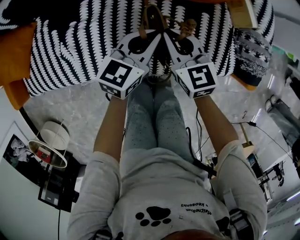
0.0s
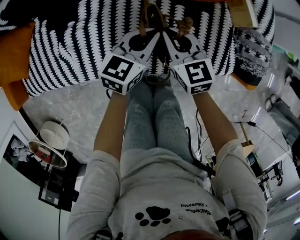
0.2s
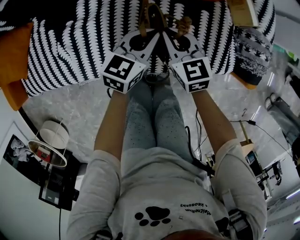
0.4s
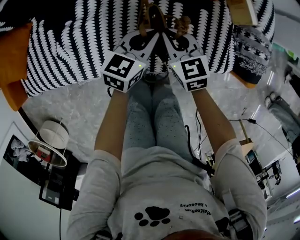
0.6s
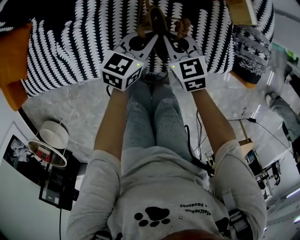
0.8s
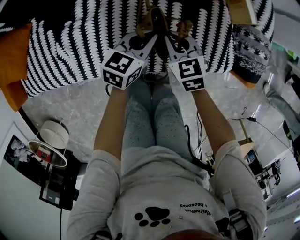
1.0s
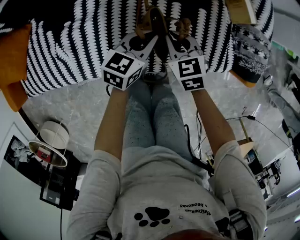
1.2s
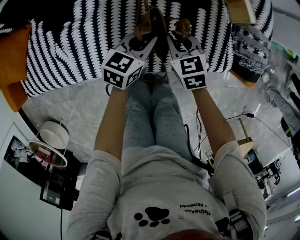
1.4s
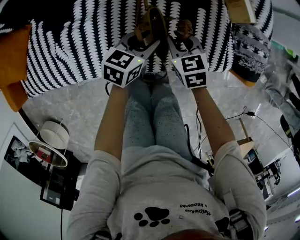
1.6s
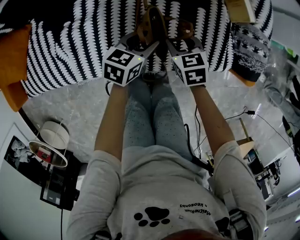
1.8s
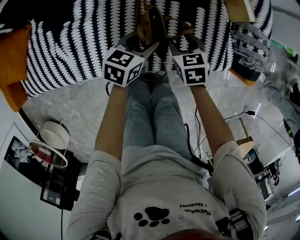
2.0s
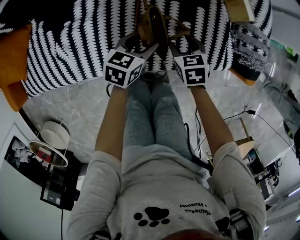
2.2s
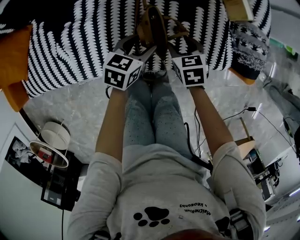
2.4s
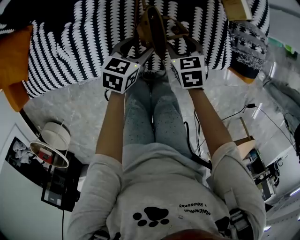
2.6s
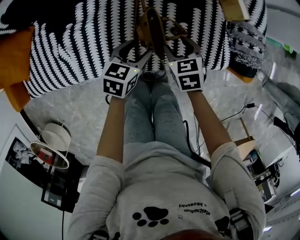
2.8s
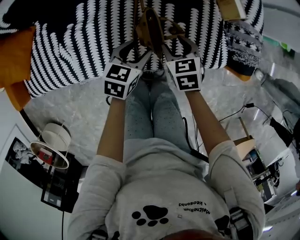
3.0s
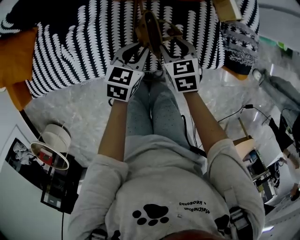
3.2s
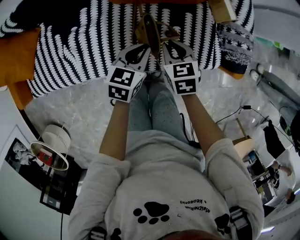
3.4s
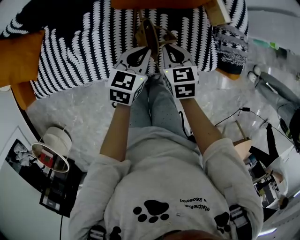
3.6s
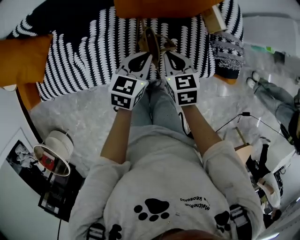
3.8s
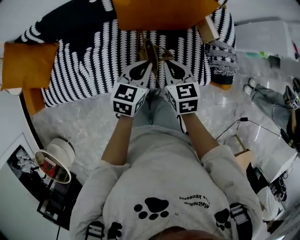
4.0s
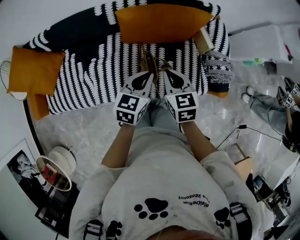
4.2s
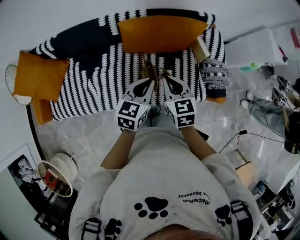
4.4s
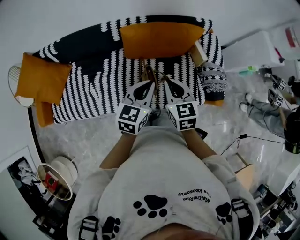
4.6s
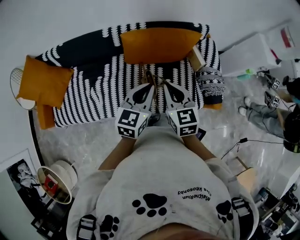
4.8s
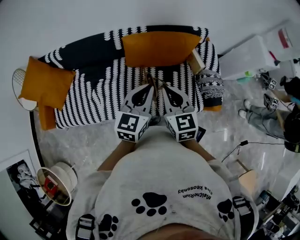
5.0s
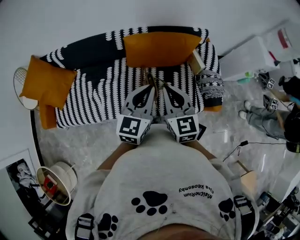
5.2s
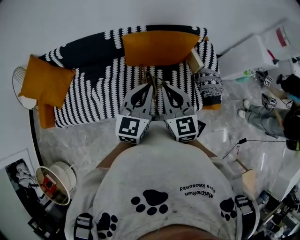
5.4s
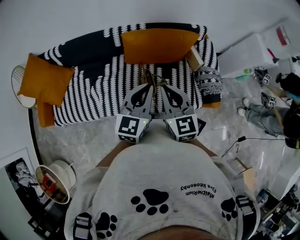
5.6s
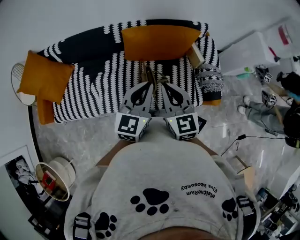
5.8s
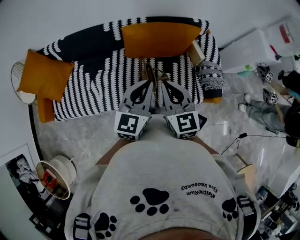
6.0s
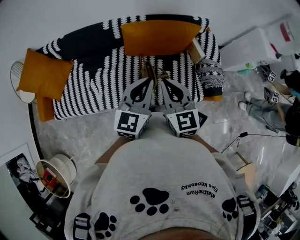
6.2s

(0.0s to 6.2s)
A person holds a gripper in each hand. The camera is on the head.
0.0s - 1.6s: The right gripper moves downward, about 5 cm, and rotates roughly 20 degrees. Meanwhile the left gripper changes place by about 5 cm, and opens.
1.6s - 3.2s: The left gripper moves about 5 cm. The right gripper travels downward and back again, some 5 cm each way, and opens up.
3.2s - 4.6s: Both grippers move upward, roughly 35 cm. The right gripper rotates some 20 degrees, and closes up. The left gripper rotates some 20 degrees.
4.6s - 6.2s: The grippers both shift upward and backward by roughly 10 cm.

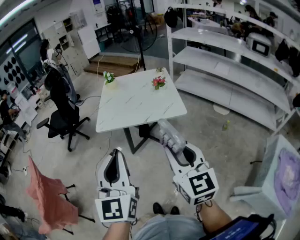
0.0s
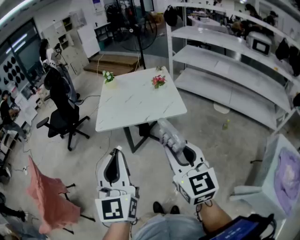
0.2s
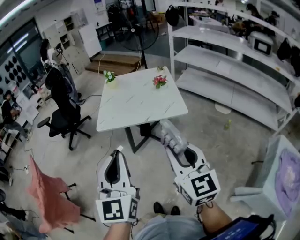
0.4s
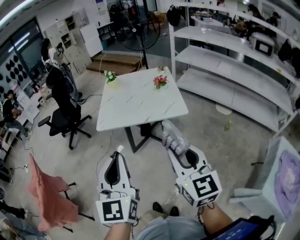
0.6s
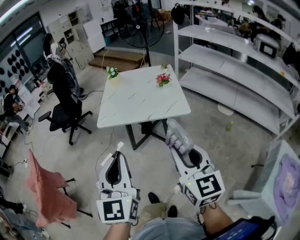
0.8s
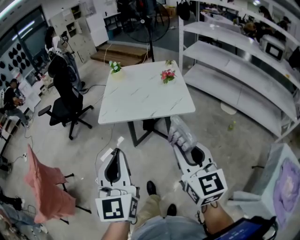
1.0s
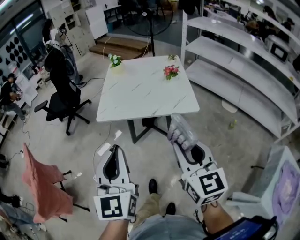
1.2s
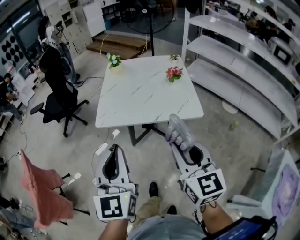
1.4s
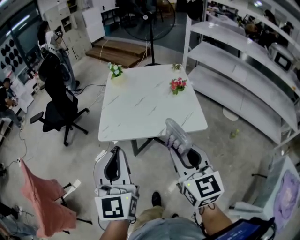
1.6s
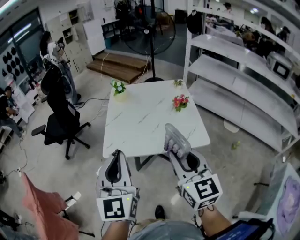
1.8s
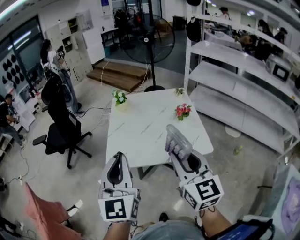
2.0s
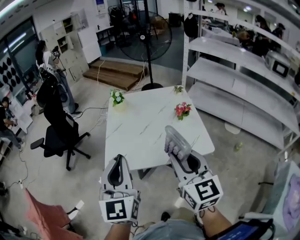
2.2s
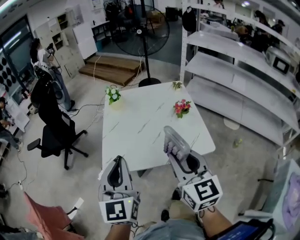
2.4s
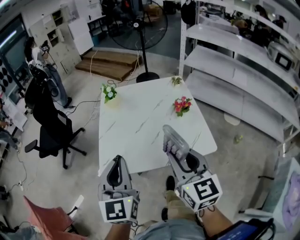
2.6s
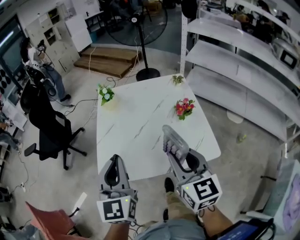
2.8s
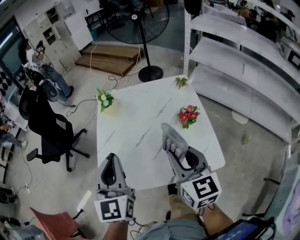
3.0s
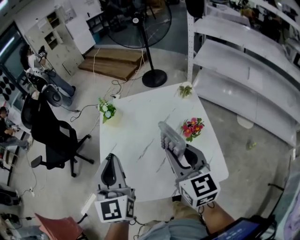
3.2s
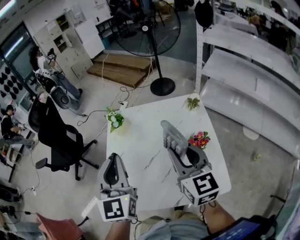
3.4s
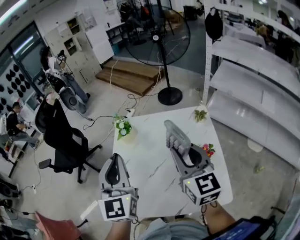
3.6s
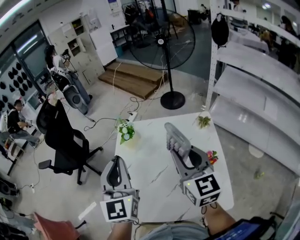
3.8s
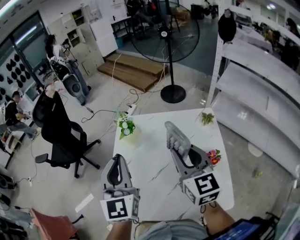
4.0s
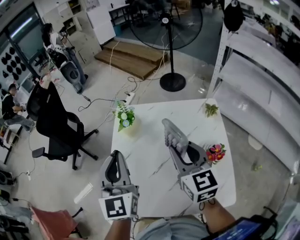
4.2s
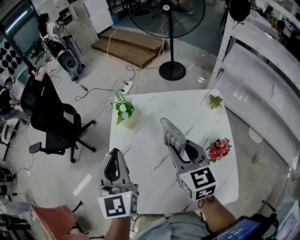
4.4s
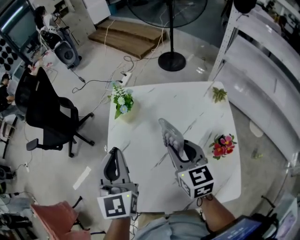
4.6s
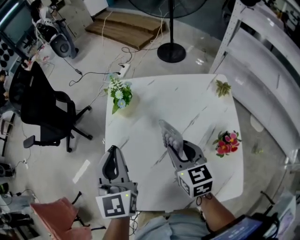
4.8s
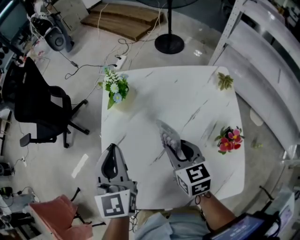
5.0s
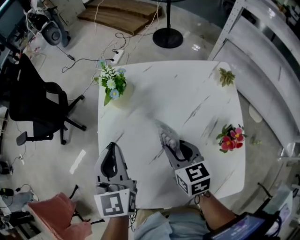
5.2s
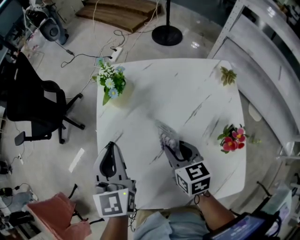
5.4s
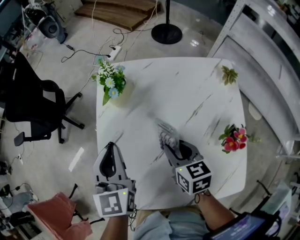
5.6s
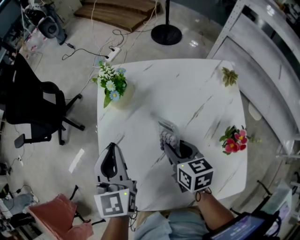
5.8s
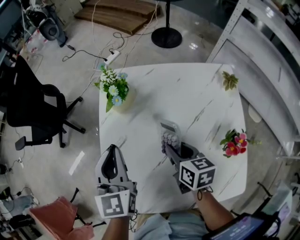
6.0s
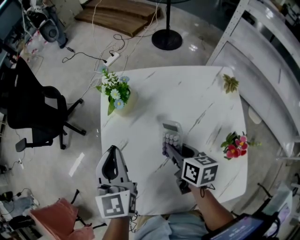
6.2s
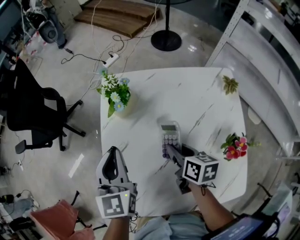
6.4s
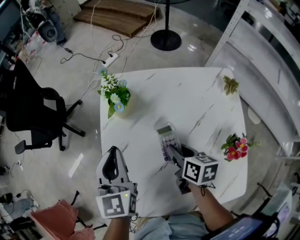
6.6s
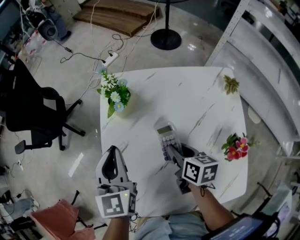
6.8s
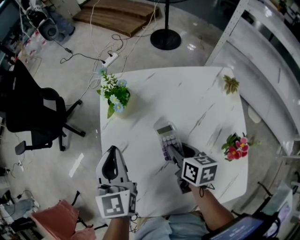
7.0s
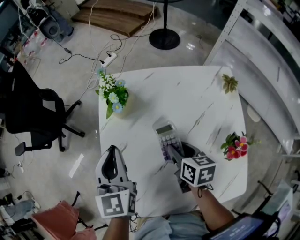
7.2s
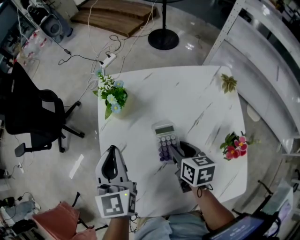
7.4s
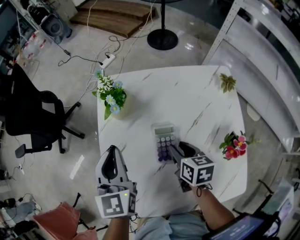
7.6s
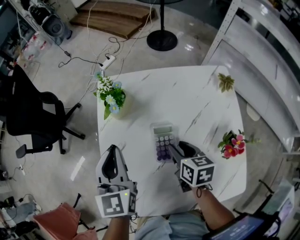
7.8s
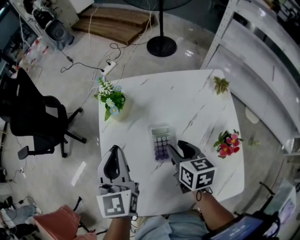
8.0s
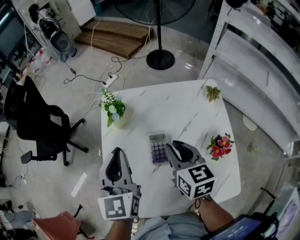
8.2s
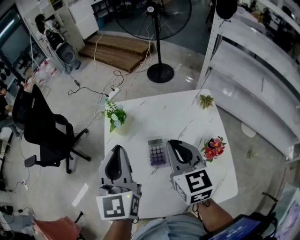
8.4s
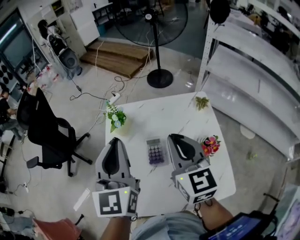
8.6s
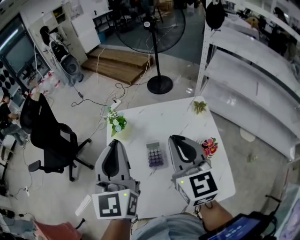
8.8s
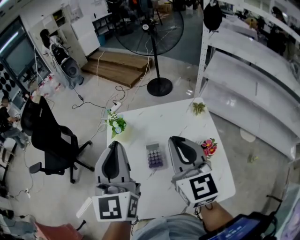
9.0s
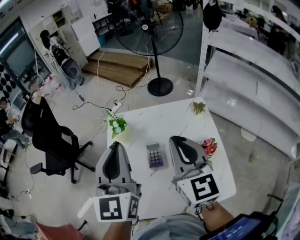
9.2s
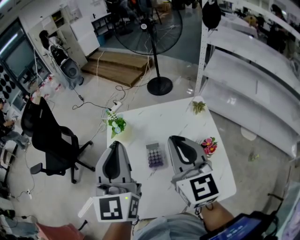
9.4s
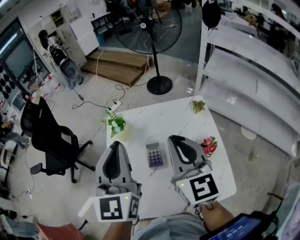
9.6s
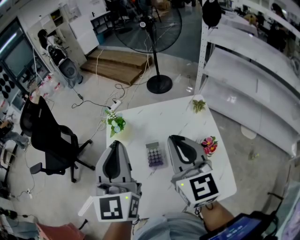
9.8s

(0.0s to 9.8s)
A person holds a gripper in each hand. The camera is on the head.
0.0s - 1.4s: Both grippers travel together forward, some 15 cm.
1.4s - 2.8s: Both grippers travel together forward, approximately 25 cm.
2.8s - 4.2s: The two grippers go approximately 25 cm forward.
4.2s - 5.6s: The grippers both shift downward by some 20 cm. The right gripper turns by approximately 30 degrees.
7.0s - 8.4s: The left gripper heads upward and to the right, covering some 15 cm. Meanwhile the right gripper is displaced upward by about 25 cm, swivels some 40 degrees, and closes its fingers.
8.4s - 9.8s: The two grippers go roughly 10 cm upward.

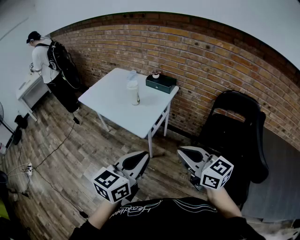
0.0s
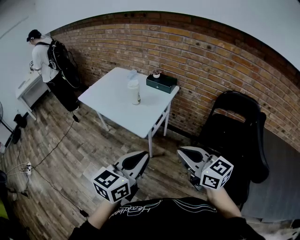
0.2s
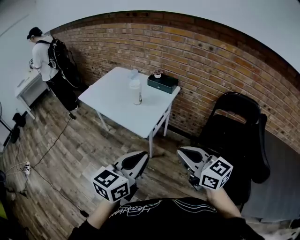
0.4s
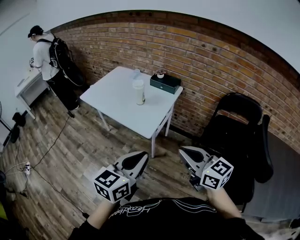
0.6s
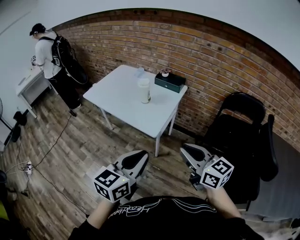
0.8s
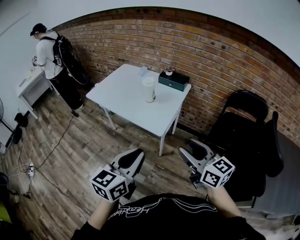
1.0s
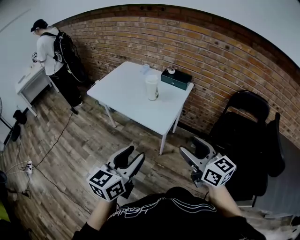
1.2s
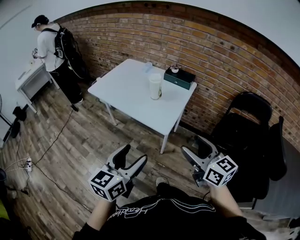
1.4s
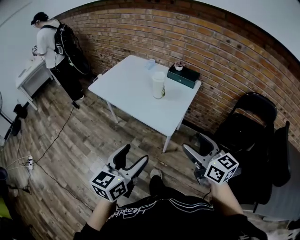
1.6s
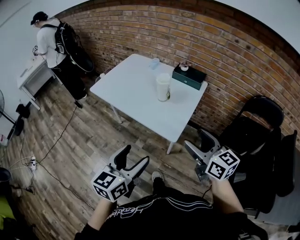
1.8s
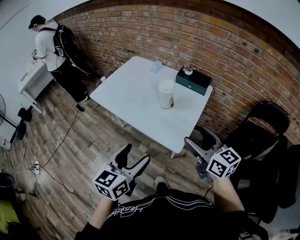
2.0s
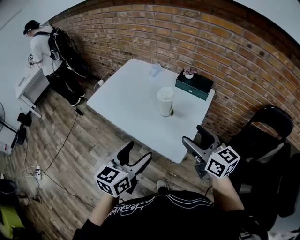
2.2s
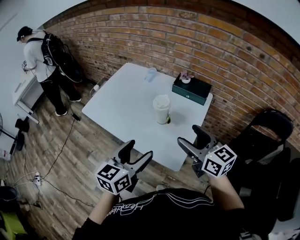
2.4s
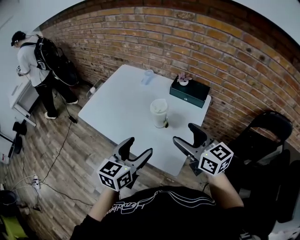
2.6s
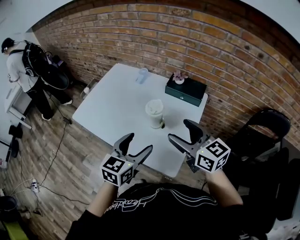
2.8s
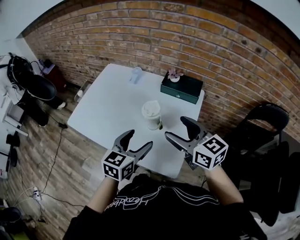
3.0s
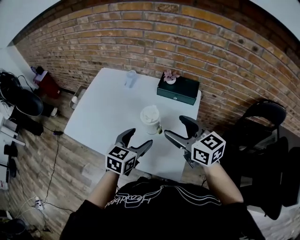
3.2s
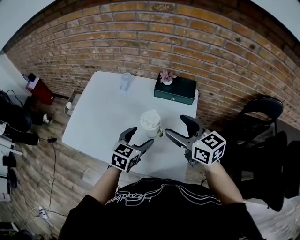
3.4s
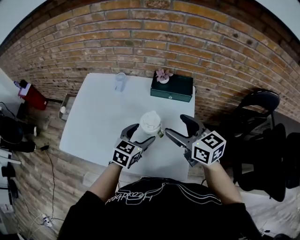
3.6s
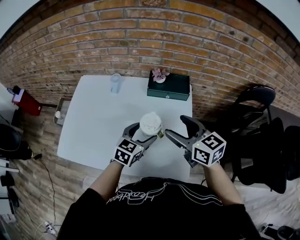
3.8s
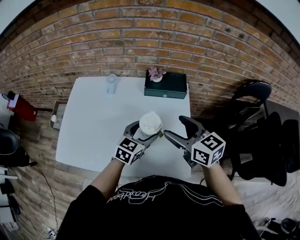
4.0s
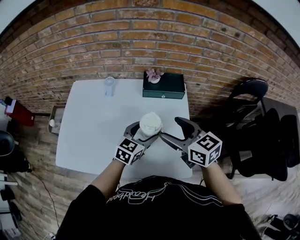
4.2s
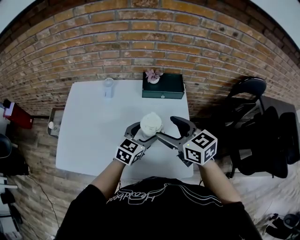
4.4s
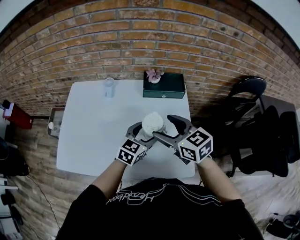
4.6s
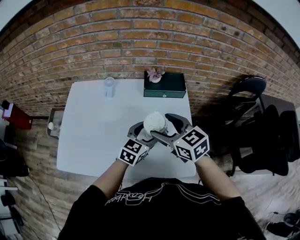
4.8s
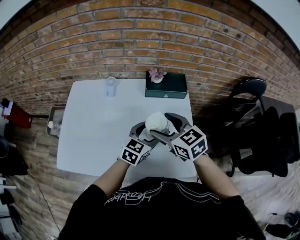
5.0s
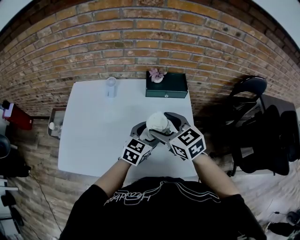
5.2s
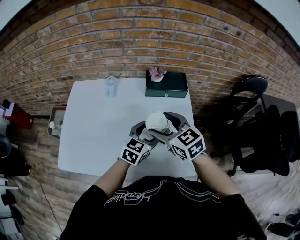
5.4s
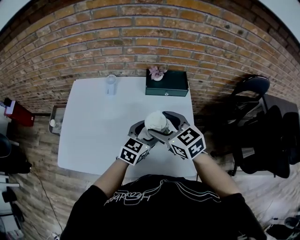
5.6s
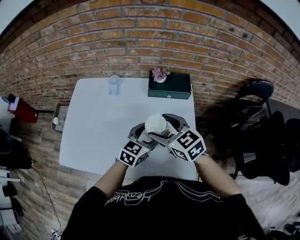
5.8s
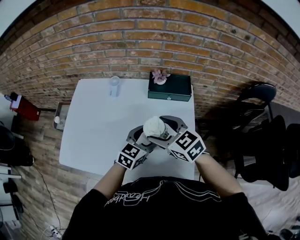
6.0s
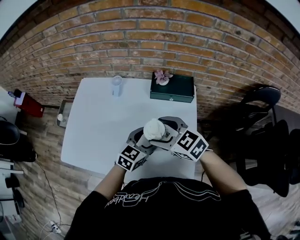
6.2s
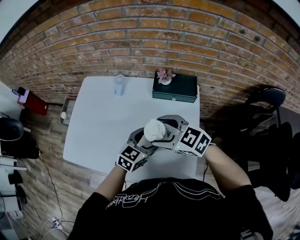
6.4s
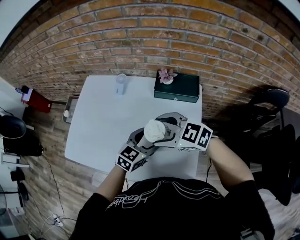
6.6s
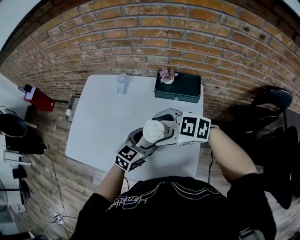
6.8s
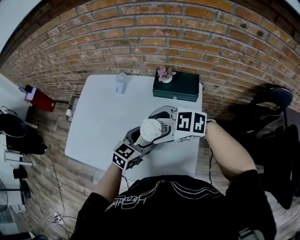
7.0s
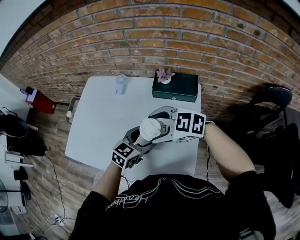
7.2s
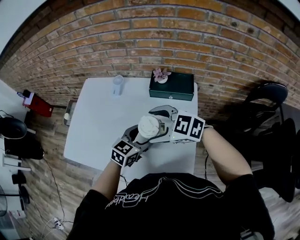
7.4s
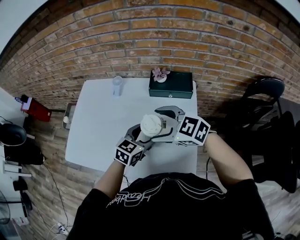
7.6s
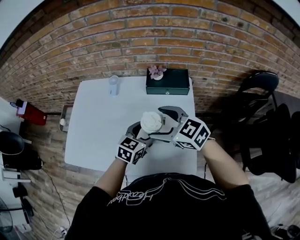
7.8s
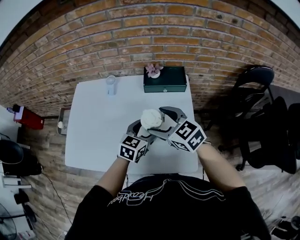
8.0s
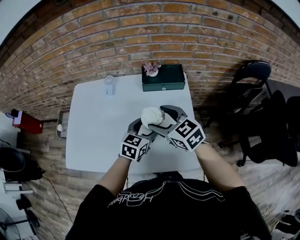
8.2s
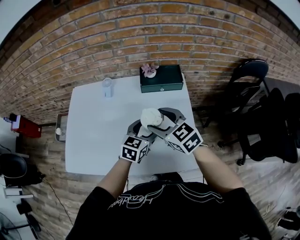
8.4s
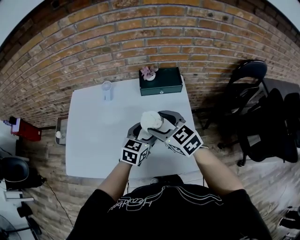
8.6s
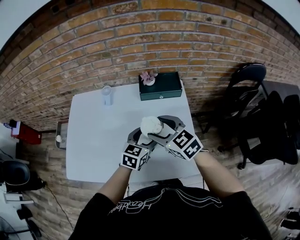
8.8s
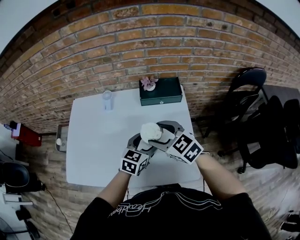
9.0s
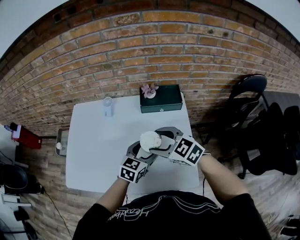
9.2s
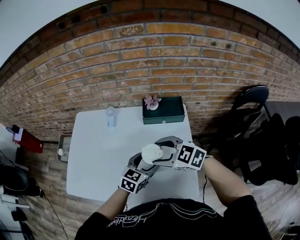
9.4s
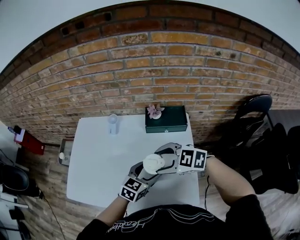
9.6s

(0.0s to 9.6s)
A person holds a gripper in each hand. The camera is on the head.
0.0s - 1.6s: The right gripper goes roughly 15 cm to the left and forward, and opens up, while the left gripper shifts some 20 cm to the left, and opens.
1.6s - 3.2s: Both grippers move forward, approximately 40 cm. The left gripper changes its angle by about 30 degrees.
3.2s - 4.8s: The right gripper is displaced to the left by approximately 10 cm, while the left gripper moves forward and downward, about 10 cm, and turns by roughly 30 degrees.
4.8s - 6.4s: The right gripper swivels roughly 30 degrees.
6.4s - 8.0s: The right gripper changes its angle by about 20 degrees.
8.0s - 9.6s: The right gripper swivels about 30 degrees.
